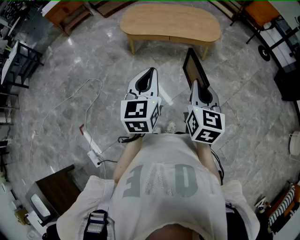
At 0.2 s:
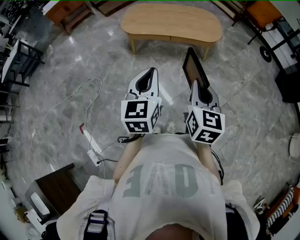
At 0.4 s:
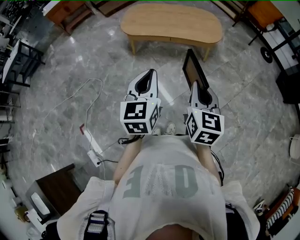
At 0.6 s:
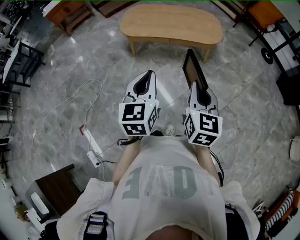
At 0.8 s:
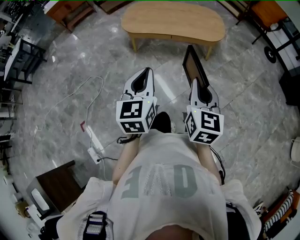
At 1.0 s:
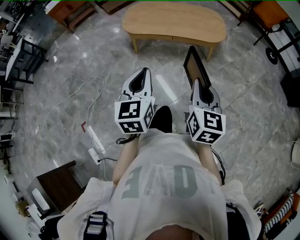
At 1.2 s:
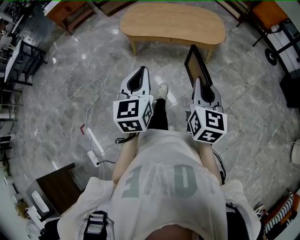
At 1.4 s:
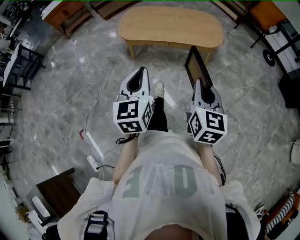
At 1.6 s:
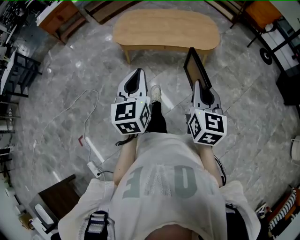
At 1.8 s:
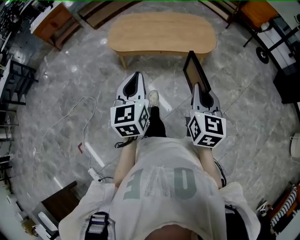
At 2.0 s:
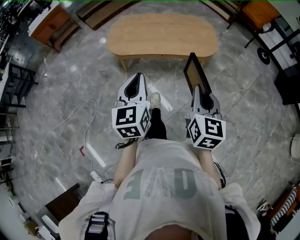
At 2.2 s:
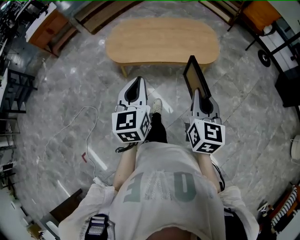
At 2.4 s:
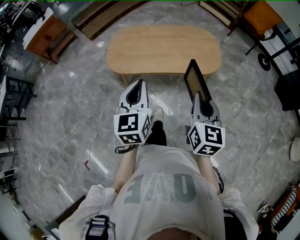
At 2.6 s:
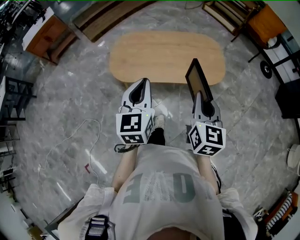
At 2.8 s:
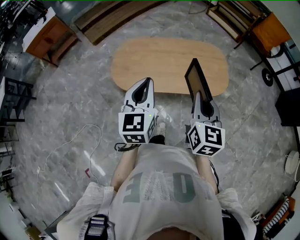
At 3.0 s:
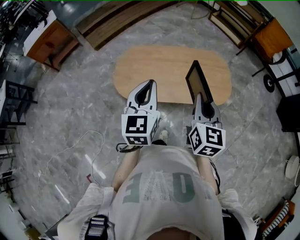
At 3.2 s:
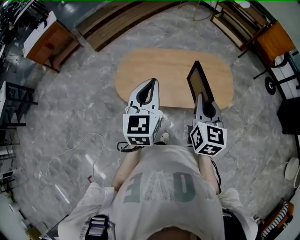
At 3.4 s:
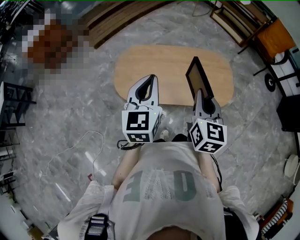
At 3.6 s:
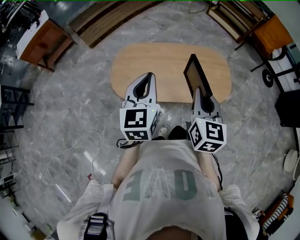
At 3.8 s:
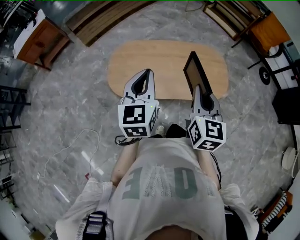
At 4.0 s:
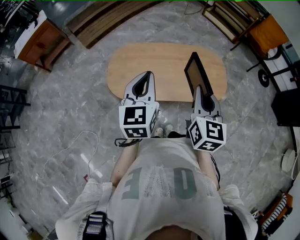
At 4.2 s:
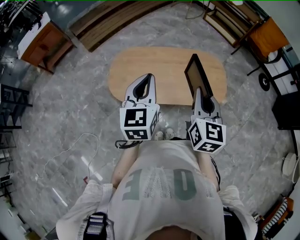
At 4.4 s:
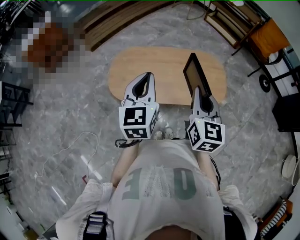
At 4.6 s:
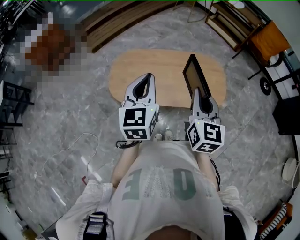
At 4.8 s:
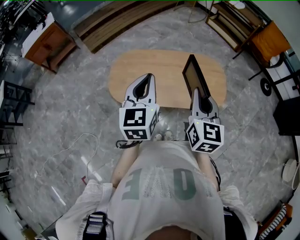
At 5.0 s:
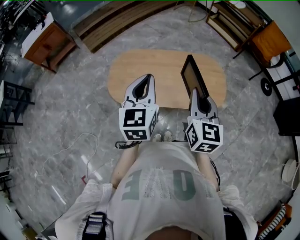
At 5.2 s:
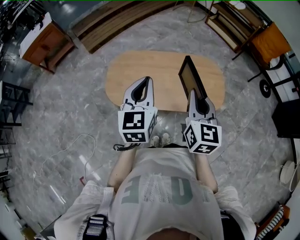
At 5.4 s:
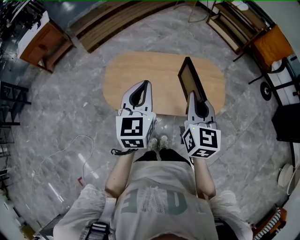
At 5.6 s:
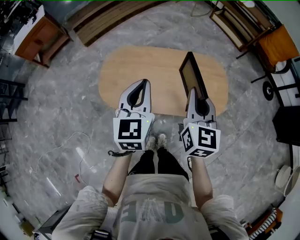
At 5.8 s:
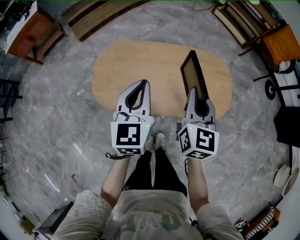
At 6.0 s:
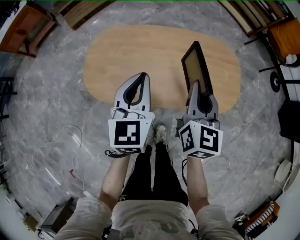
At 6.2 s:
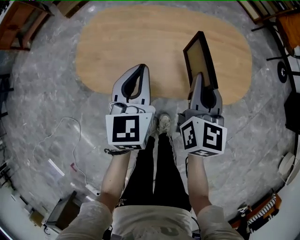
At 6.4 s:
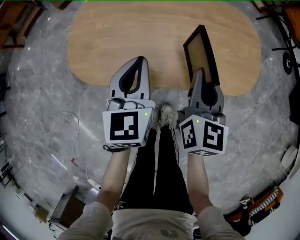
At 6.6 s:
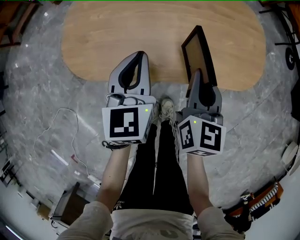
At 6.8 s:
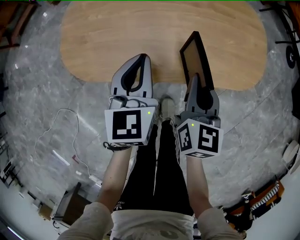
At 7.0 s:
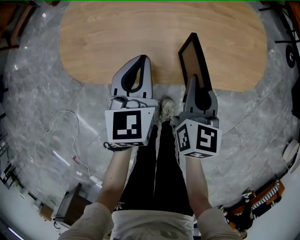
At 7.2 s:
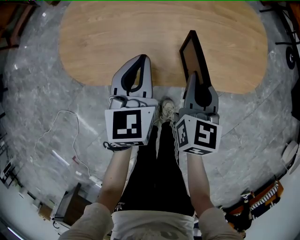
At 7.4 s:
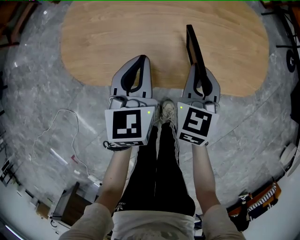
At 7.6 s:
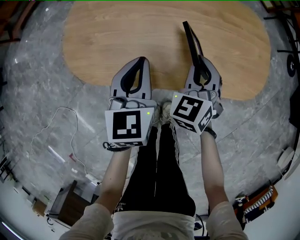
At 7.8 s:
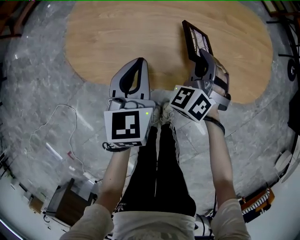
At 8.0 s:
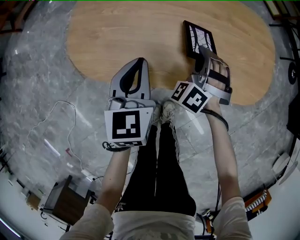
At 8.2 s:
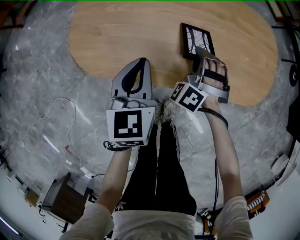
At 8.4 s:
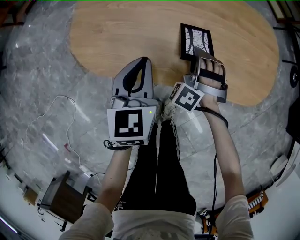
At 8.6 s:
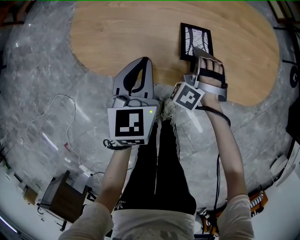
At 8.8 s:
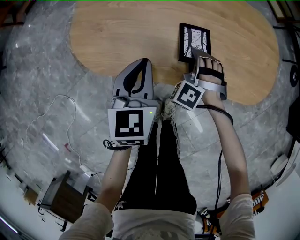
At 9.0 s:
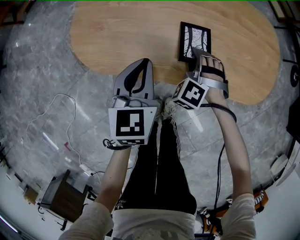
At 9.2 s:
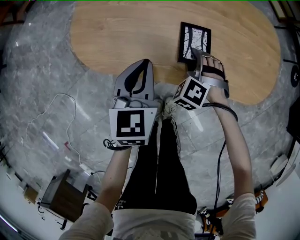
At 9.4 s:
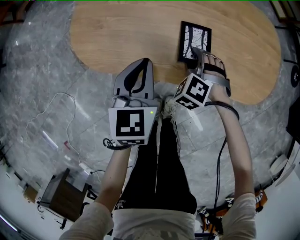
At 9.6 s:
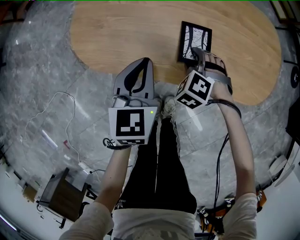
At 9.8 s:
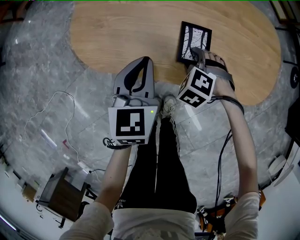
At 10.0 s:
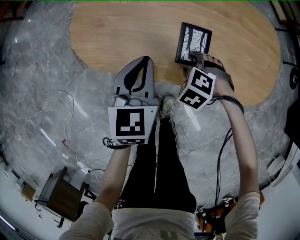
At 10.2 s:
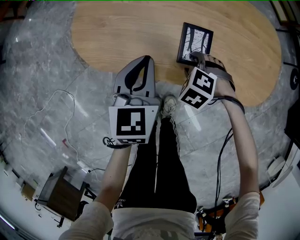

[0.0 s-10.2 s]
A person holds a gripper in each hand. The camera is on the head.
0.0 to 1.4 s: The grippers both shift forward by approximately 10 cm.
1.4 to 3.0 s: The pair of grippers is taken forward, roughly 50 cm.
3.0 to 4.4 s: The grippers stay close to where they were, moving slightly.
4.4 to 5.8 s: The left gripper is displaced downward and forward by some 15 cm. The right gripper moves forward and downward, roughly 20 cm.
5.8 to 7.2 s: Both grippers travel together downward, roughly 25 cm.
7.2 to 8.8 s: The right gripper travels downward and to the left by roughly 15 cm, and twists about 90 degrees counterclockwise, seen from behind. The left gripper travels to the left by roughly 5 cm.
8.8 to 10.2 s: The right gripper moves roughly 5 cm, tips its fingers downward by some 30 degrees, and opens.

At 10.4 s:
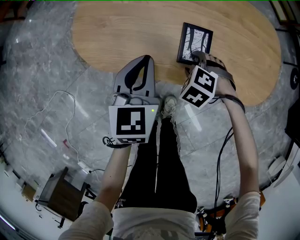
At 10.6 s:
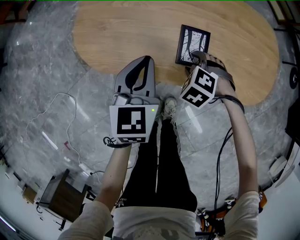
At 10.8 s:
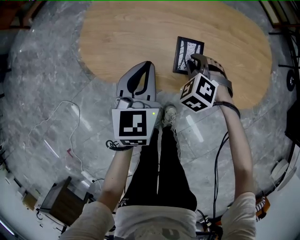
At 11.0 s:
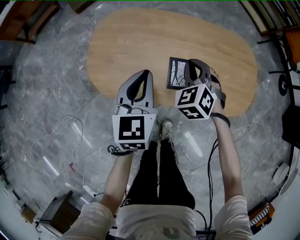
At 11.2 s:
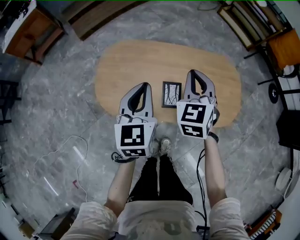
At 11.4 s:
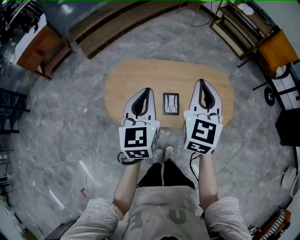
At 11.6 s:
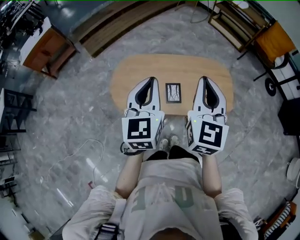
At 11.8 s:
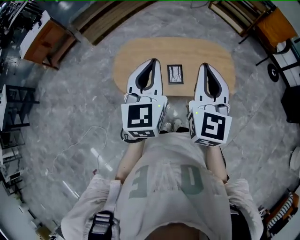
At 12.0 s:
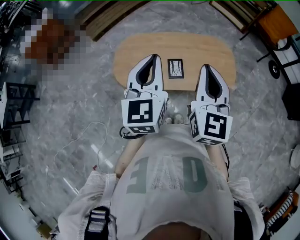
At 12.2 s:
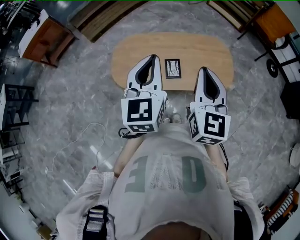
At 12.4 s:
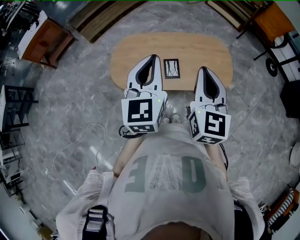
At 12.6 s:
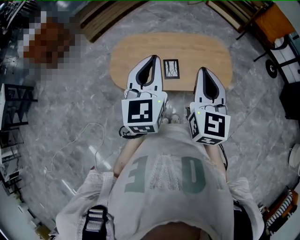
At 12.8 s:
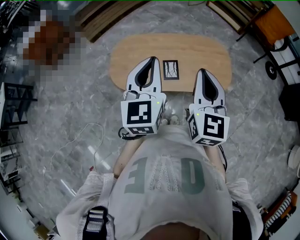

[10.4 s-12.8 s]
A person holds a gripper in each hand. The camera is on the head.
10.4 to 11.6 s: The grippers both shift upward by approximately 50 cm. The right gripper angles its fingers upward, by some 70 degrees, and closes. The left gripper swivels some 20 degrees.
11.6 to 12.8 s: The grippers both shift backward by about 10 cm.

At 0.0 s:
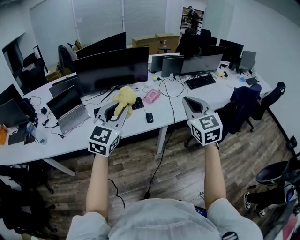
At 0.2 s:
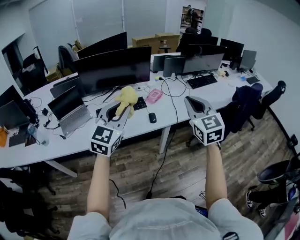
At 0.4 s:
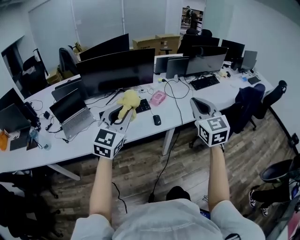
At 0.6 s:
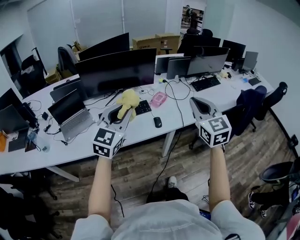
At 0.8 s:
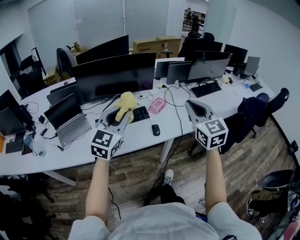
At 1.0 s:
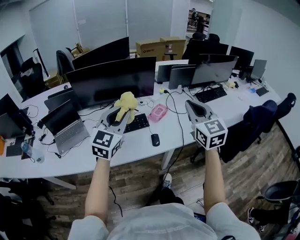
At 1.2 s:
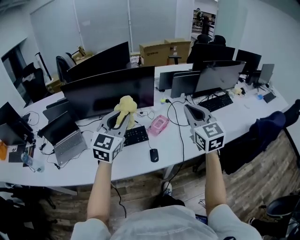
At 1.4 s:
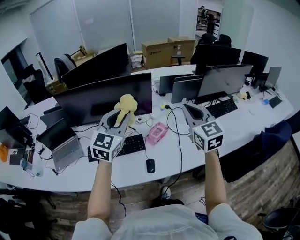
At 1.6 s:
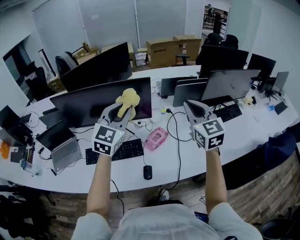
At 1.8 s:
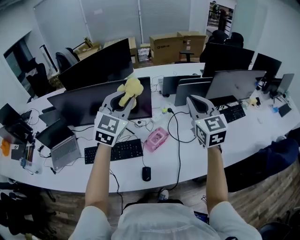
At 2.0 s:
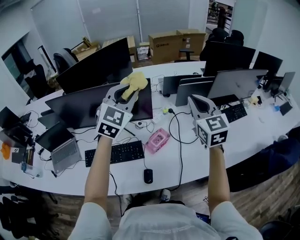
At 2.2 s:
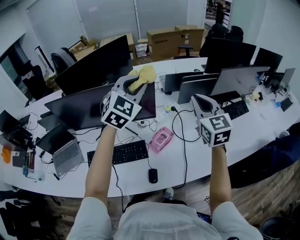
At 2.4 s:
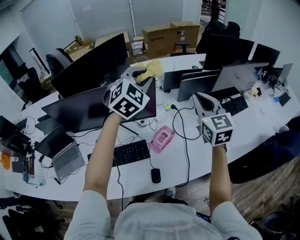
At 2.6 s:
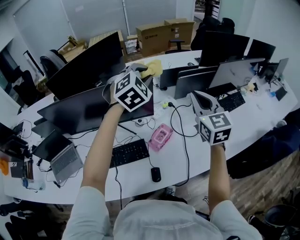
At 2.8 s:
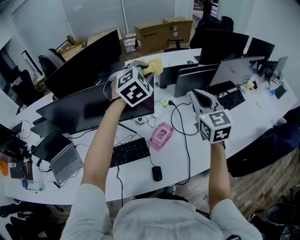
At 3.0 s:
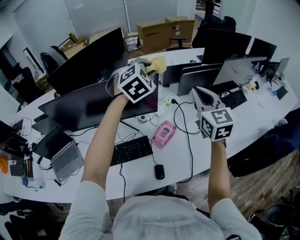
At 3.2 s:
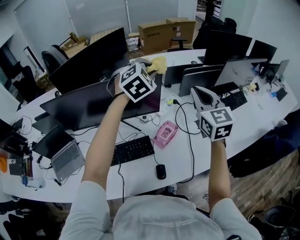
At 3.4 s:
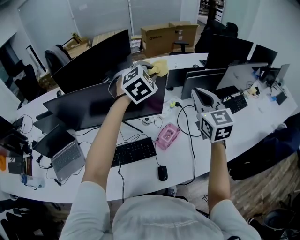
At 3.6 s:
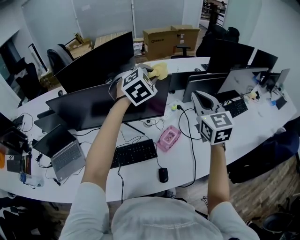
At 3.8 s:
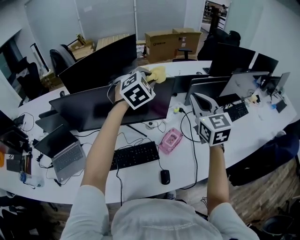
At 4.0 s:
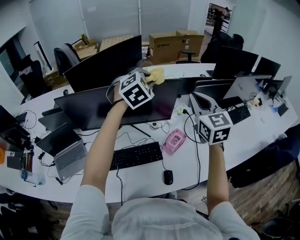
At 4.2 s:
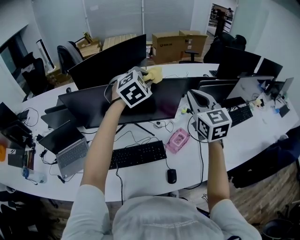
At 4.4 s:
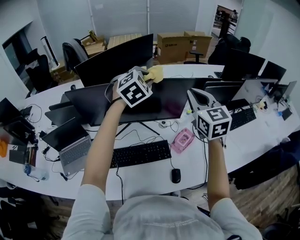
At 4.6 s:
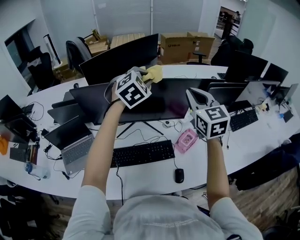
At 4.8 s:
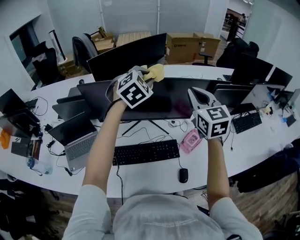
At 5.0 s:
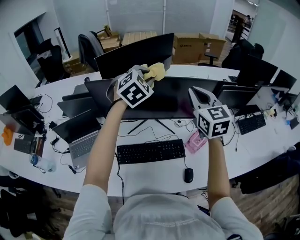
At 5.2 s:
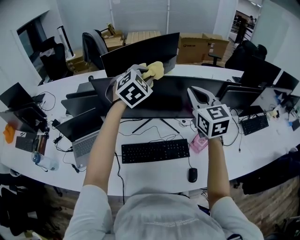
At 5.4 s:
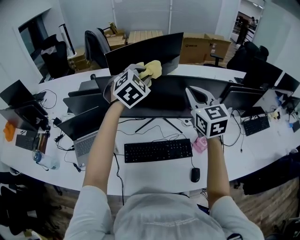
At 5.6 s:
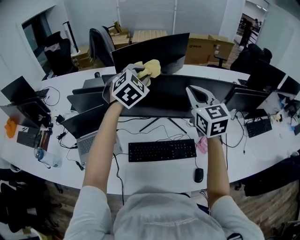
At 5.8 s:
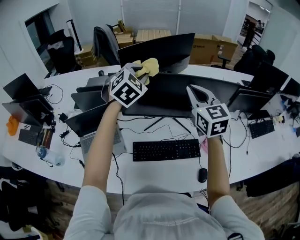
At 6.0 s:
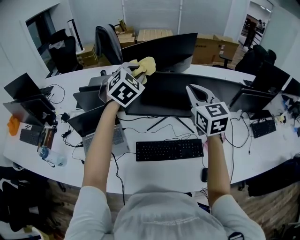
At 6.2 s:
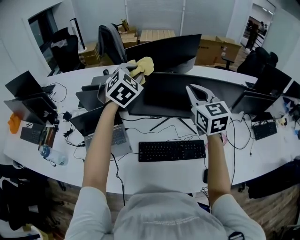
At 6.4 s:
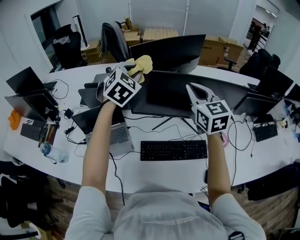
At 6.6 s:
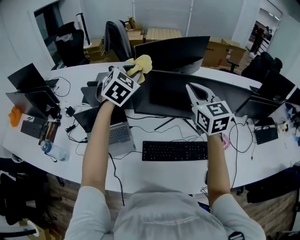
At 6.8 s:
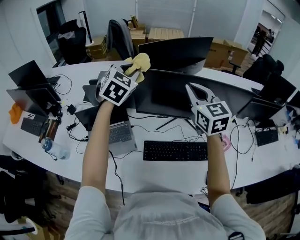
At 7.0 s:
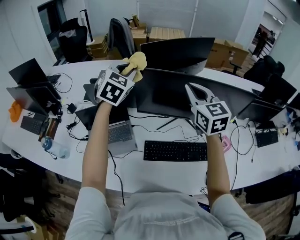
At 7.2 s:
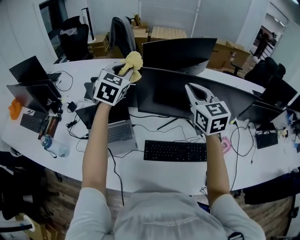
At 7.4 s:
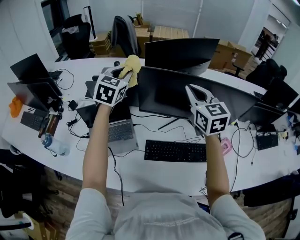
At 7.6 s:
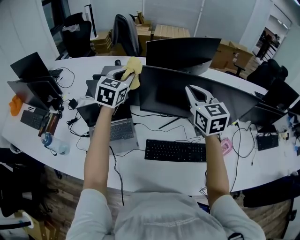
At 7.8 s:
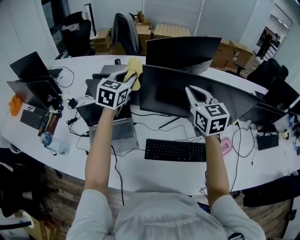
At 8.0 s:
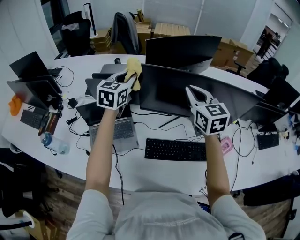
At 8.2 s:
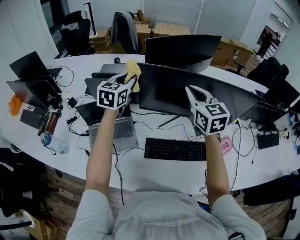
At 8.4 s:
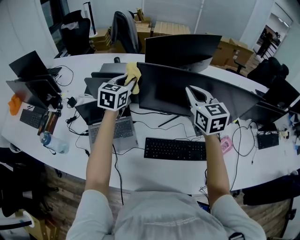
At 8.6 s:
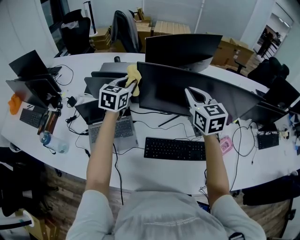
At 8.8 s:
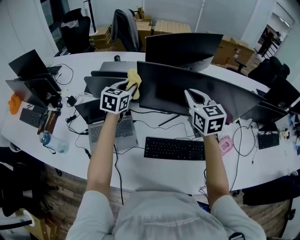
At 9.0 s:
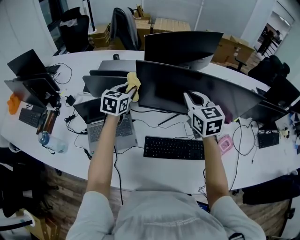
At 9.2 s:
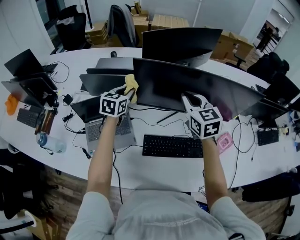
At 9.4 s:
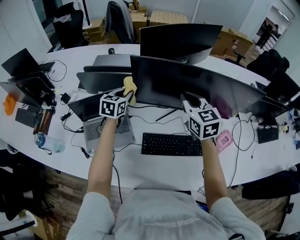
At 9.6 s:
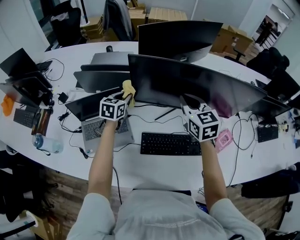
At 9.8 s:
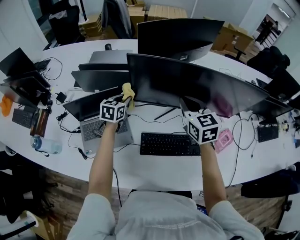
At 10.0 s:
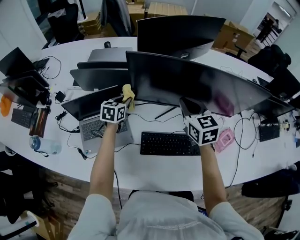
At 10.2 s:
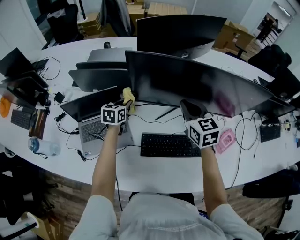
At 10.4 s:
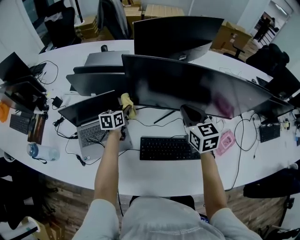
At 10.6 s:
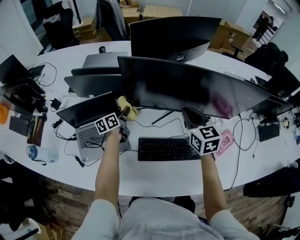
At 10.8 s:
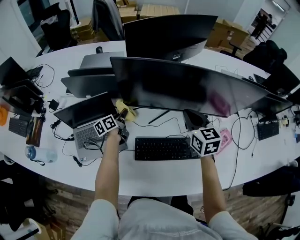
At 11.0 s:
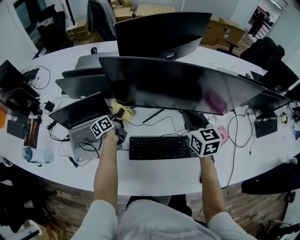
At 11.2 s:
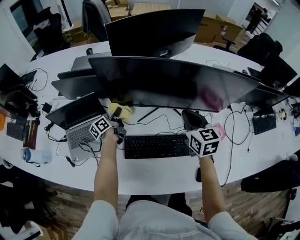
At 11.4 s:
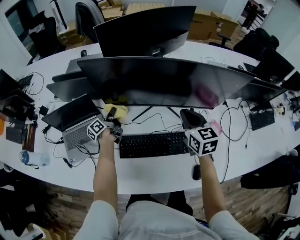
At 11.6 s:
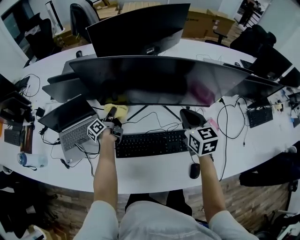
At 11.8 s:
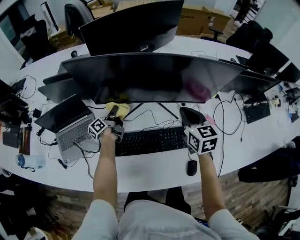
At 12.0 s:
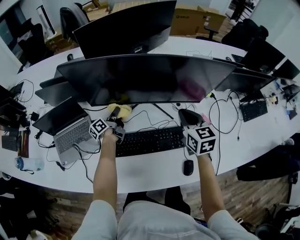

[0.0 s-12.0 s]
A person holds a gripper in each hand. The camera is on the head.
0.0 to 1.6 s: Both grippers are carried forward, roughly 50 cm.
1.6 to 3.0 s: The right gripper heads forward, covering about 10 cm; the left gripper is displaced forward by some 20 cm, and changes its angle by approximately 40 degrees.
3.0 to 4.4 s: Both grippers move to the left, about 20 cm.
4.4 to 6.0 s: The grippers both shift to the left by some 25 cm.
6.0 to 7.6 s: The left gripper travels to the left by about 15 cm, and changes its angle by roughly 30 degrees. Meanwhile the right gripper shifts about 10 cm to the left.
7.6 to 9.0 s: The right gripper is displaced downward by roughly 5 cm. Meanwhile the left gripper shifts some 10 cm downward.
9.0 to 10.4 s: The right gripper goes roughly 10 cm downward. Meanwhile the left gripper heads downward, covering some 20 cm, and turns by some 30 degrees.
10.4 to 12.0 s: The two grippers go approximately 20 cm to the right. The left gripper twists about 40 degrees counterclockwise, seen from behind.
